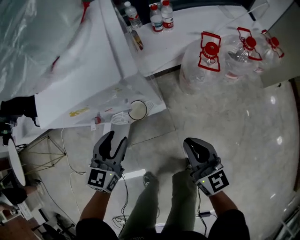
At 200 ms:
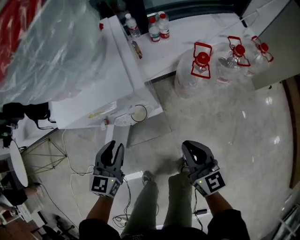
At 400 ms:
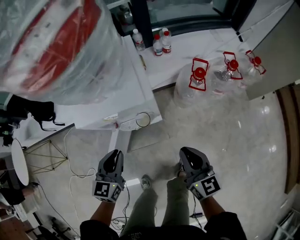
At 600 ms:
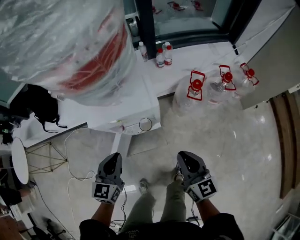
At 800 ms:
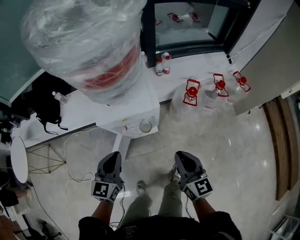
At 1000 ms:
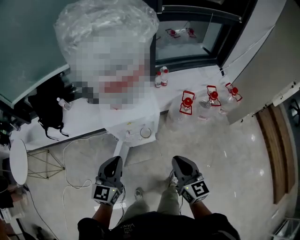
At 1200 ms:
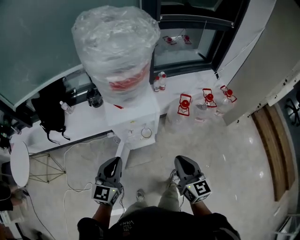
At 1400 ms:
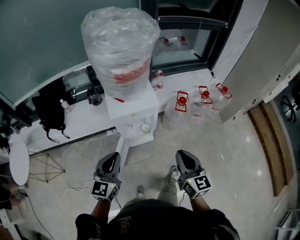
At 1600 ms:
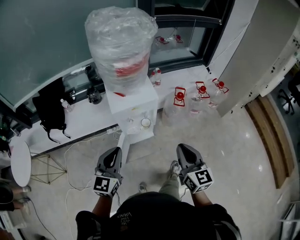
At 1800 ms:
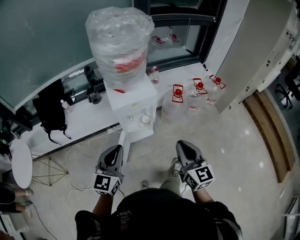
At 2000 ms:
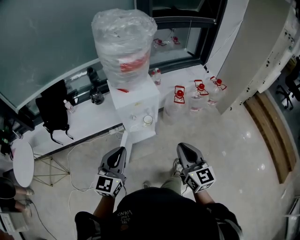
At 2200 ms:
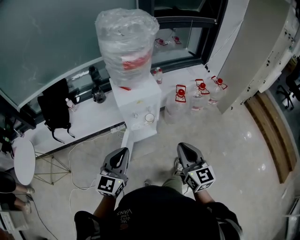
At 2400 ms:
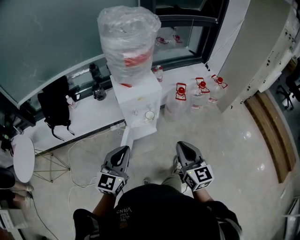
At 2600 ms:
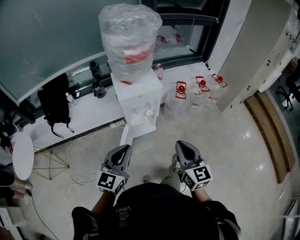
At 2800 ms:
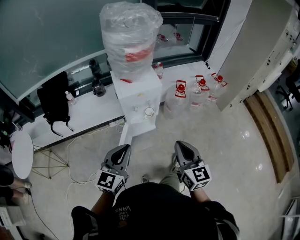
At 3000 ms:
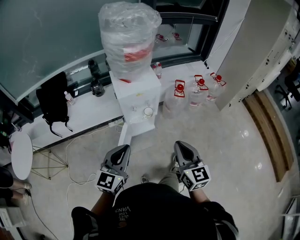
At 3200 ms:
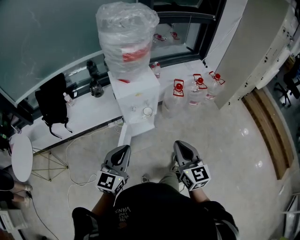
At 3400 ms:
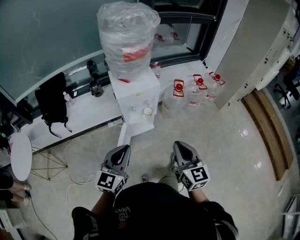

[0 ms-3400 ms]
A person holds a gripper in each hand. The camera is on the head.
0 ms to 1600 ms: The grippers both shift upward and backward by approximately 50 cm. The left gripper closes its fingers.
1600 ms to 3400 ms: The right gripper heads backward and to the left, covering approximately 10 cm; the left gripper travels backward by some 10 cm.

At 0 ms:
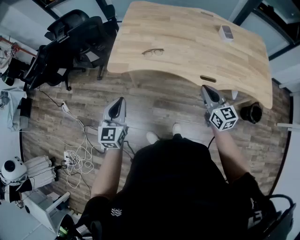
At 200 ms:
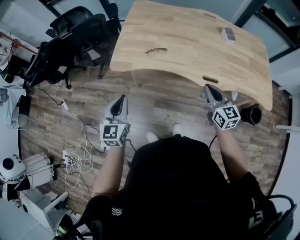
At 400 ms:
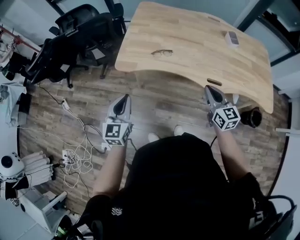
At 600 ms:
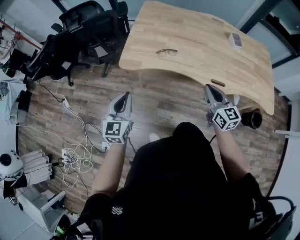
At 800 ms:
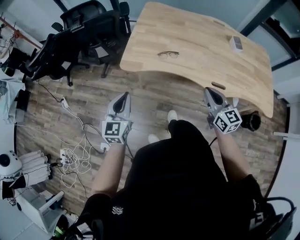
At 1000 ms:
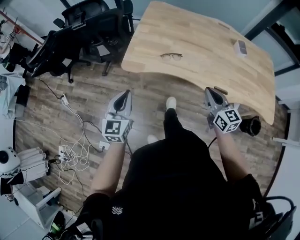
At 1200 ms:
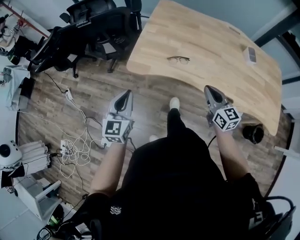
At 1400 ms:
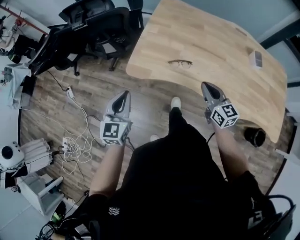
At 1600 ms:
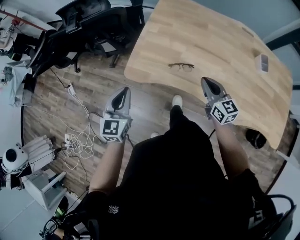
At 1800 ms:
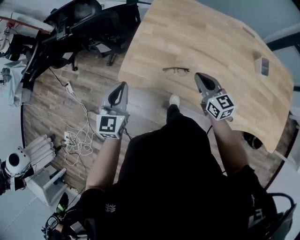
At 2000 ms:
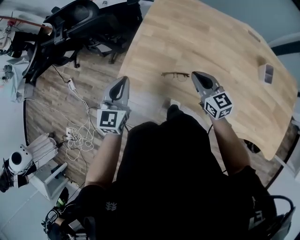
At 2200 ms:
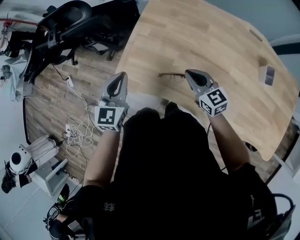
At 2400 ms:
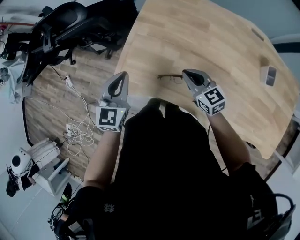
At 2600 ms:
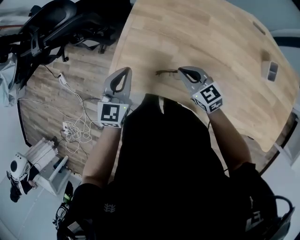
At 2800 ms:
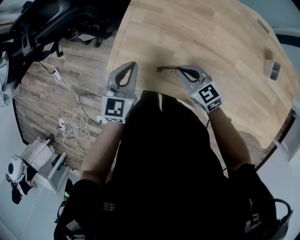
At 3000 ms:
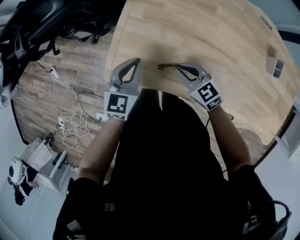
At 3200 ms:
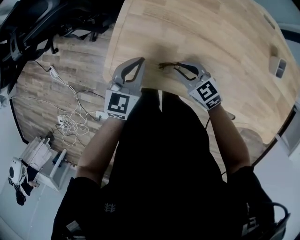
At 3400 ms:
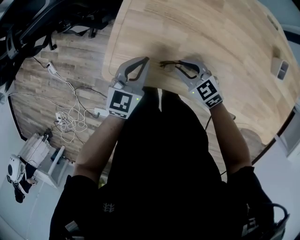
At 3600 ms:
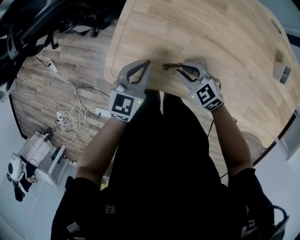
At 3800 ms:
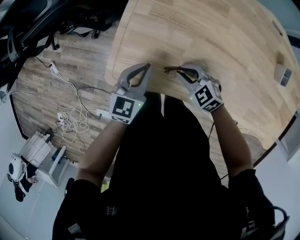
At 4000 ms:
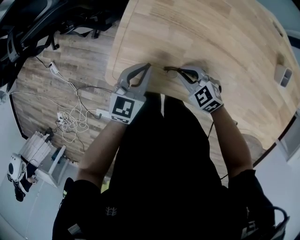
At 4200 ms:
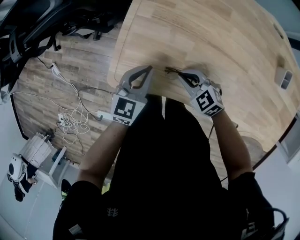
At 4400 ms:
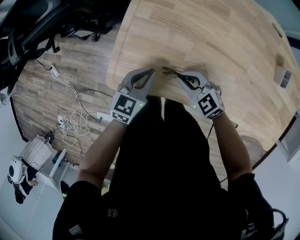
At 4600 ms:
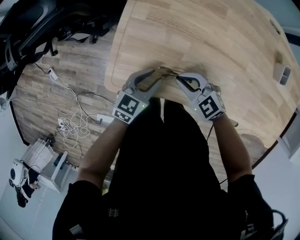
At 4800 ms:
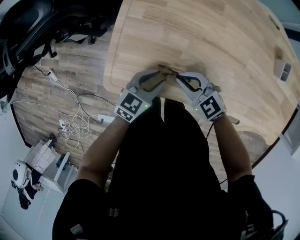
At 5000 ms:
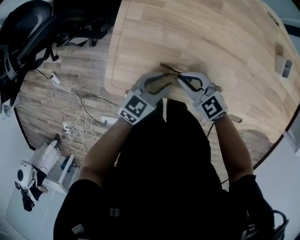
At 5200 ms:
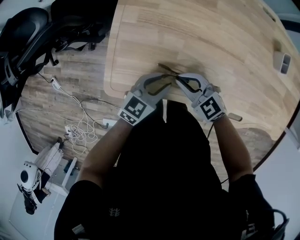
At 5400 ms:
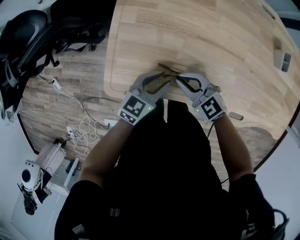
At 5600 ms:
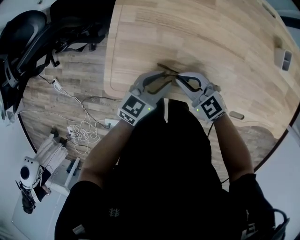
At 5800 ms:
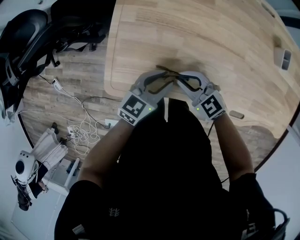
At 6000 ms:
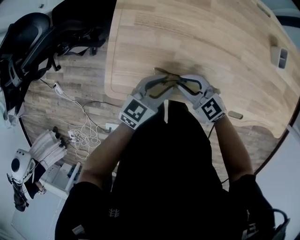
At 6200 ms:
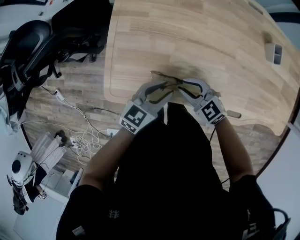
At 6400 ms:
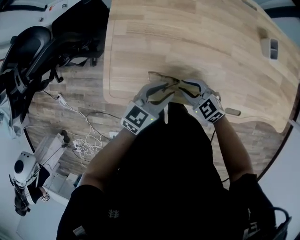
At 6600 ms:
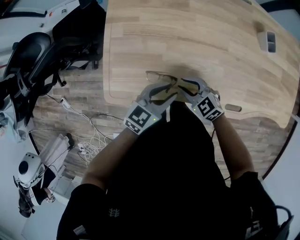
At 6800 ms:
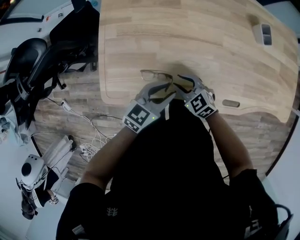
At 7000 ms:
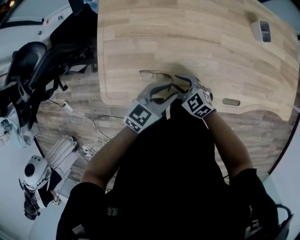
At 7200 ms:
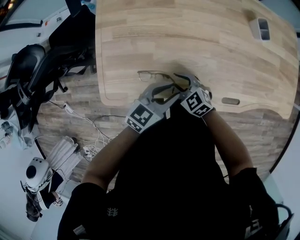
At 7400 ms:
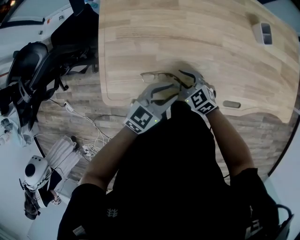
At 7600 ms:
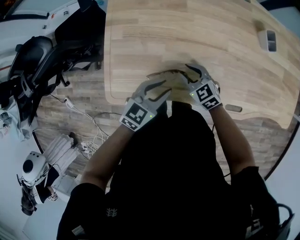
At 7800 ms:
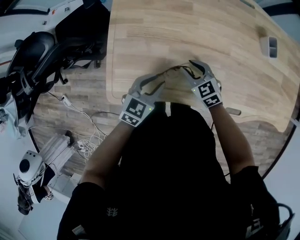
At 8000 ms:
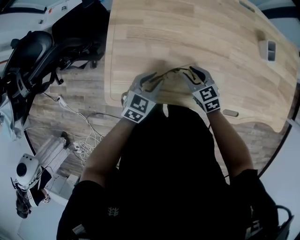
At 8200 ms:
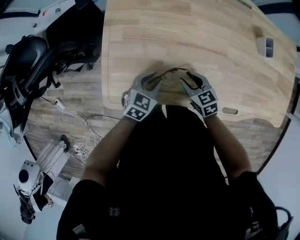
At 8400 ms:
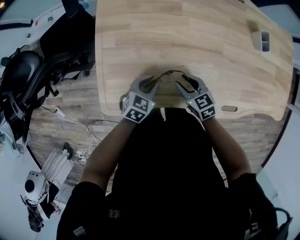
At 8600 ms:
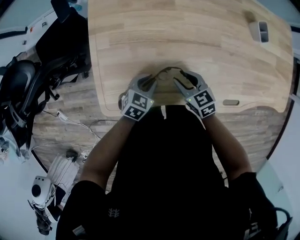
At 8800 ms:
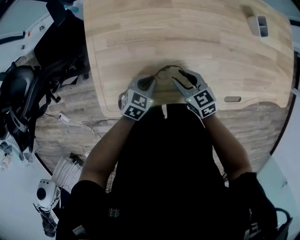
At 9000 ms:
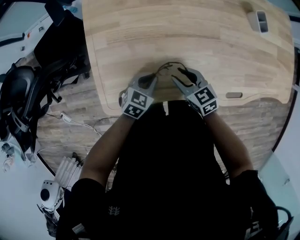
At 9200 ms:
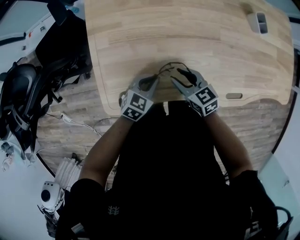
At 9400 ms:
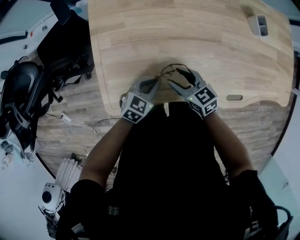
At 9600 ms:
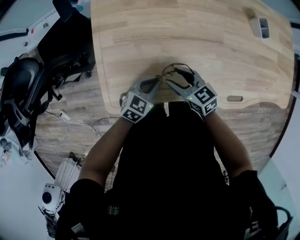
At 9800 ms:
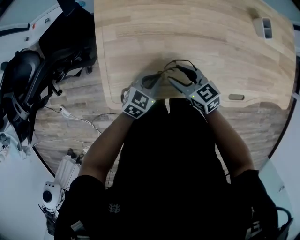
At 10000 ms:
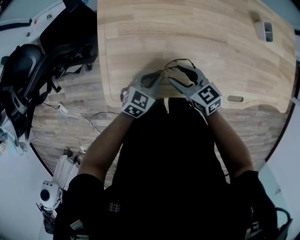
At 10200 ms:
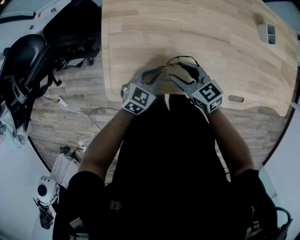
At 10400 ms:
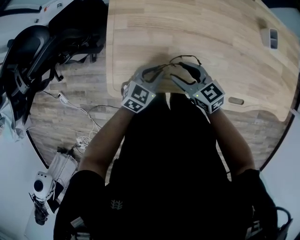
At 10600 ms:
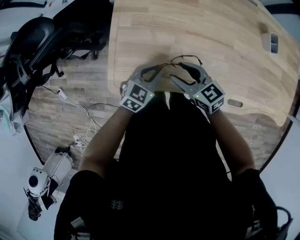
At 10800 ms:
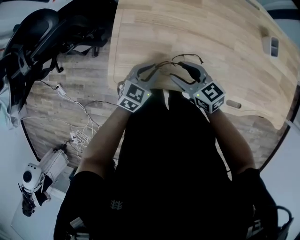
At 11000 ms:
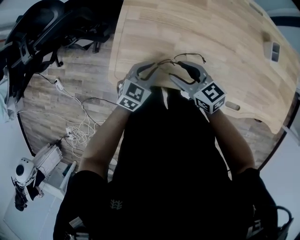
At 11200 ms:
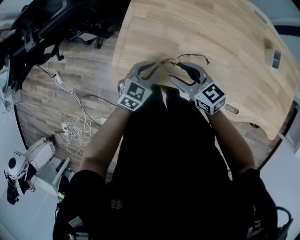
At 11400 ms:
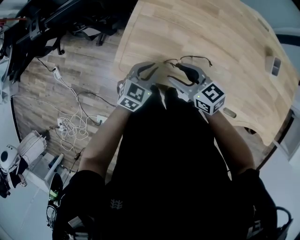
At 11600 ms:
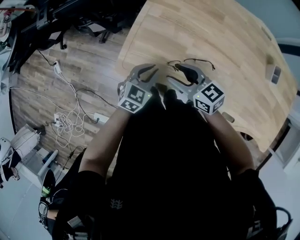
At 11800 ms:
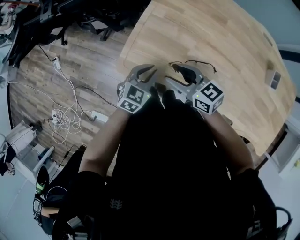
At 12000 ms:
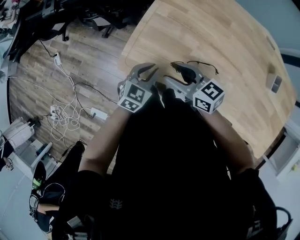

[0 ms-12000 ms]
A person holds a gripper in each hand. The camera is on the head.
0 ms to 1600 ms: The two grippers go some 25 cm forward.
1600 ms to 3000 ms: The right gripper shifts about 20 cm forward and downward, and changes its angle by roughly 30 degrees, while the left gripper heads forward, to the right and downward, covering roughly 25 cm.
3000 ms to 4400 ms: The left gripper shifts some 5 cm downward.
4400 ms to 6000 ms: The left gripper travels to the right by roughly 10 cm, changes its angle by some 20 degrees, and opens up.
6000 ms to 7600 ms: The left gripper is displaced to the right by some 5 cm. The right gripper heads to the right, covering approximately 10 cm, and changes its angle by about 20 degrees.
7600 ms to 9000 ms: The left gripper moves downward, some 10 cm, and closes, while the right gripper changes its angle by some 30 degrees.
9000 ms to 10400 ms: The left gripper is displaced upward by about 5 cm. The right gripper heads upward and to the left, covering some 10 cm.
10400 ms to 12000 ms: The left gripper ends up roughly 10 cm from where it was, and turns by roughly 30 degrees. The right gripper moves some 15 cm, and rotates roughly 30 degrees.

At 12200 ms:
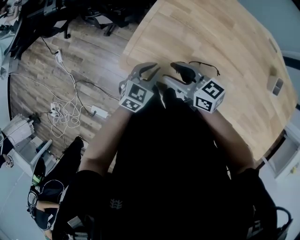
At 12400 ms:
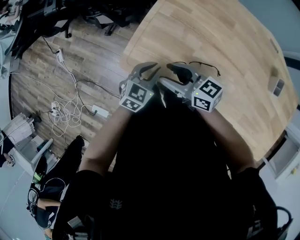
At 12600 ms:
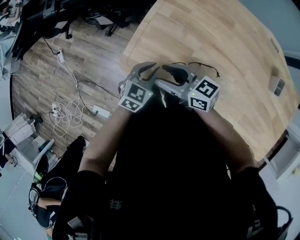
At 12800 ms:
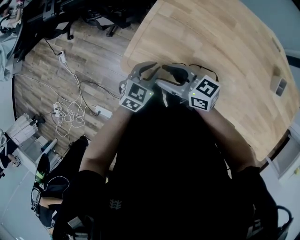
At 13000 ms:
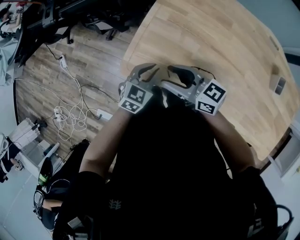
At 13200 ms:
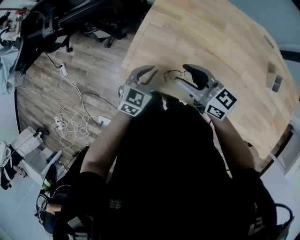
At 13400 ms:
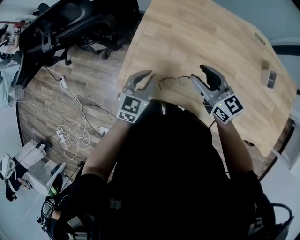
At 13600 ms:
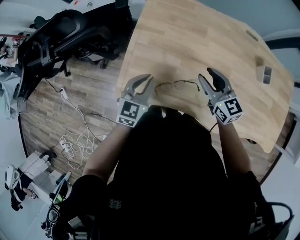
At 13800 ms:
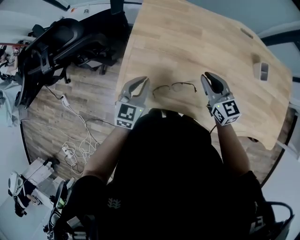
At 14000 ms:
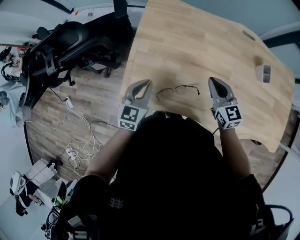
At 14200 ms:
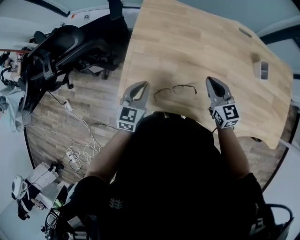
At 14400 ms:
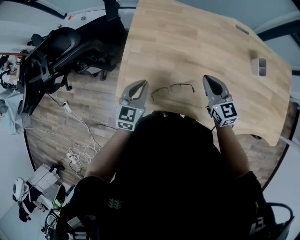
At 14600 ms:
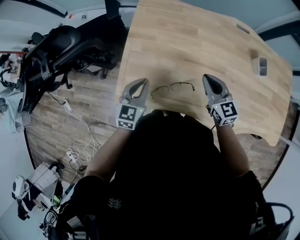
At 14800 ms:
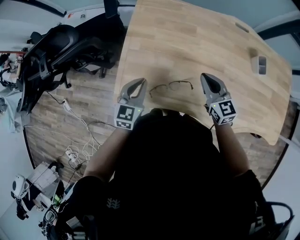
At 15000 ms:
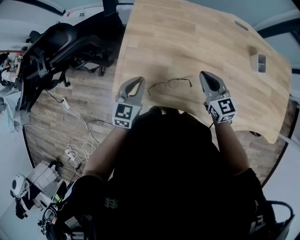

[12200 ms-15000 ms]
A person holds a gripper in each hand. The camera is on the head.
12200 ms to 13600 ms: The right gripper shifts approximately 20 cm to the right, and turns by roughly 40 degrees, while the left gripper goes approximately 10 cm upward, forward and to the right.
13600 ms to 15000 ms: The right gripper closes up.

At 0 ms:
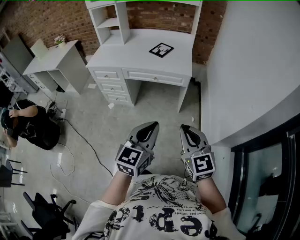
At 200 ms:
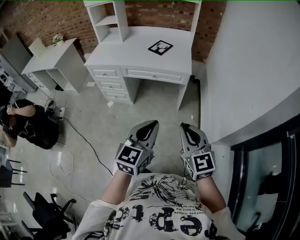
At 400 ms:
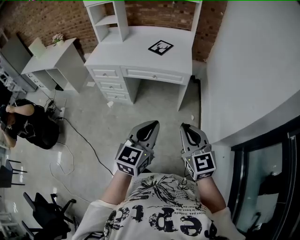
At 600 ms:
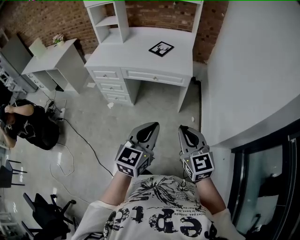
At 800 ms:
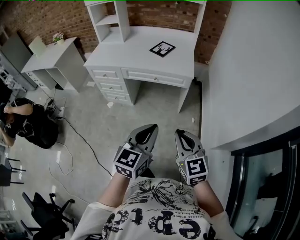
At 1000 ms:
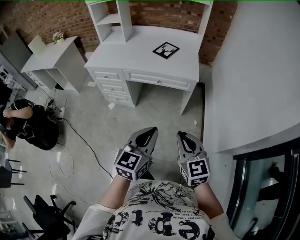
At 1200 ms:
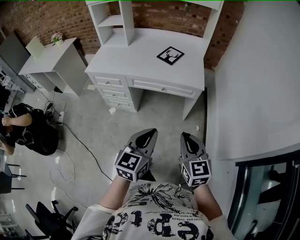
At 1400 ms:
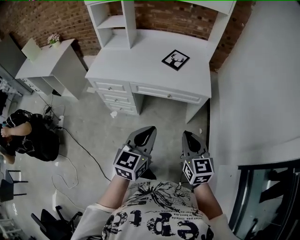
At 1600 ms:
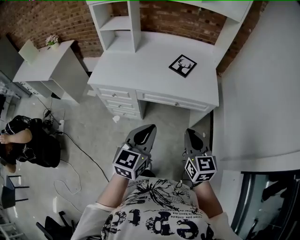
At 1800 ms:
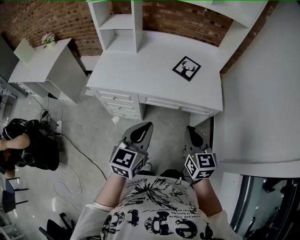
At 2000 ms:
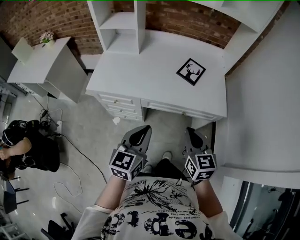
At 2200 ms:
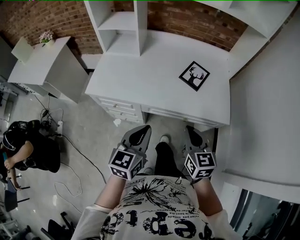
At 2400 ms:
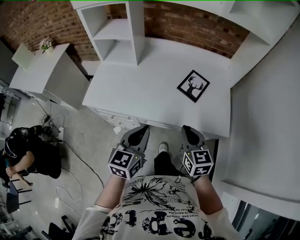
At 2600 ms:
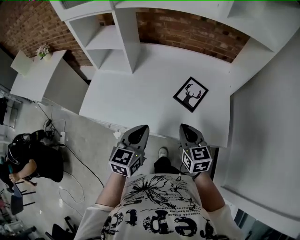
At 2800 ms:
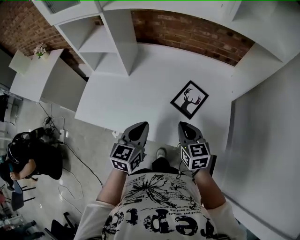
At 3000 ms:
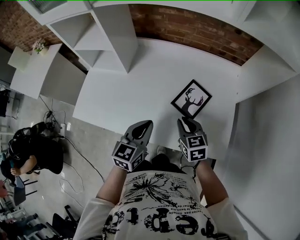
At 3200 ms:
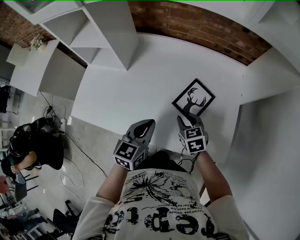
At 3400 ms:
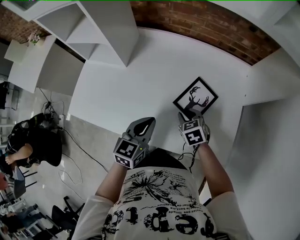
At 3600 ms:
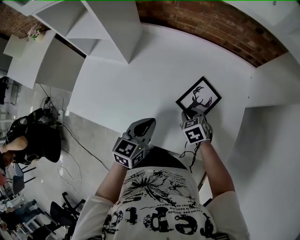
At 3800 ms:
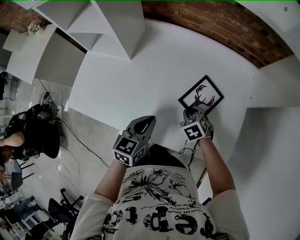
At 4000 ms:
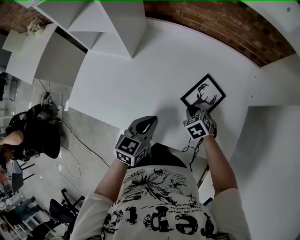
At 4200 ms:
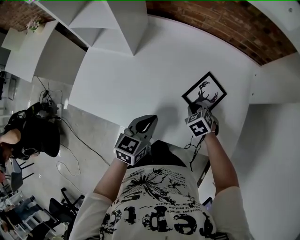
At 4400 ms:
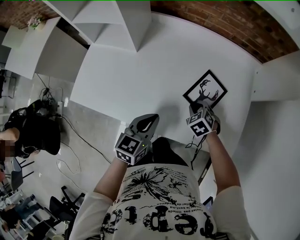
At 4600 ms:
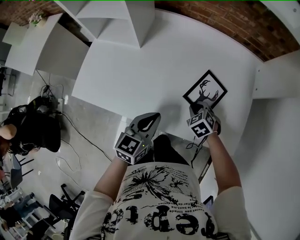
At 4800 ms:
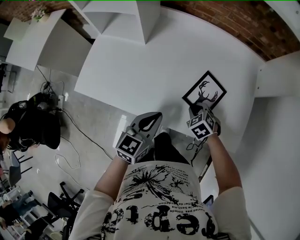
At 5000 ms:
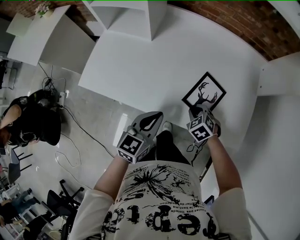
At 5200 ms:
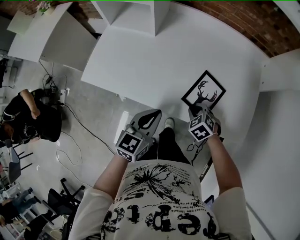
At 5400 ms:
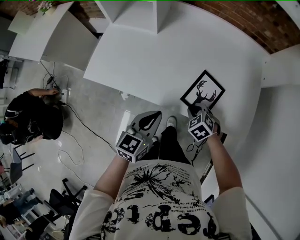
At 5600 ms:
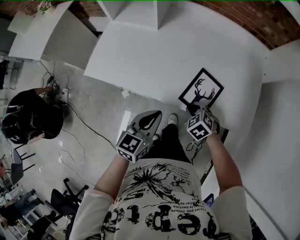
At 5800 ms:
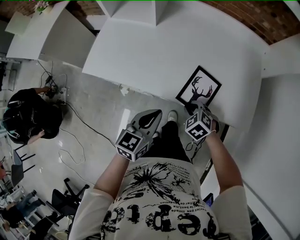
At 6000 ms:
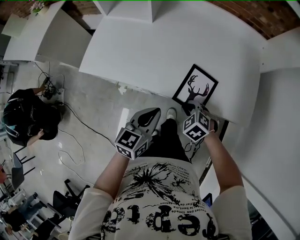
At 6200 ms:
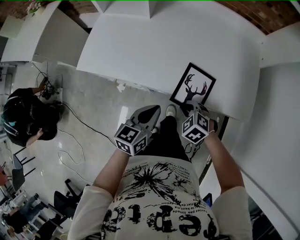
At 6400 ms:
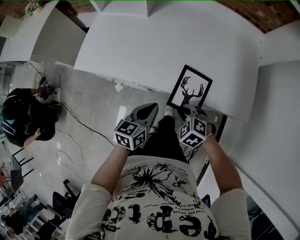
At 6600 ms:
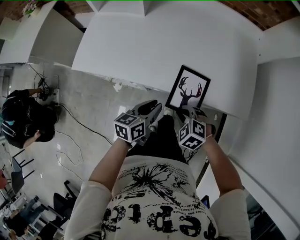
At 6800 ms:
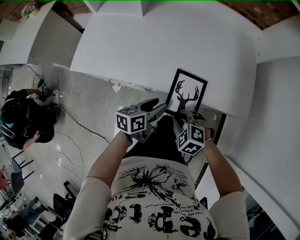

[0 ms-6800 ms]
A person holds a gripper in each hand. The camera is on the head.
0 ms to 1400 ms: Both grippers travel together forward and to the left, roughly 30 cm.
1400 ms to 2800 ms: The two grippers travel together, forward, about 50 cm.
2800 ms to 4000 ms: The left gripper heads downward and forward, covering approximately 15 cm; the right gripper is displaced downward and forward by some 25 cm, and angles its fingers downward, by about 40 degrees.
4000 ms to 5400 ms: Both grippers travel together backward and to the left, approximately 20 cm.
5400 ms to 6800 ms: The right gripper travels backward by about 15 cm. Meanwhile the left gripper moves downward, approximately 10 cm, changes its angle by some 30 degrees, and opens up.
